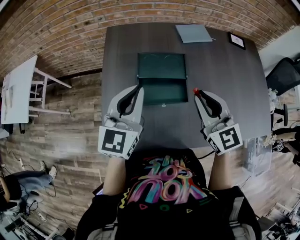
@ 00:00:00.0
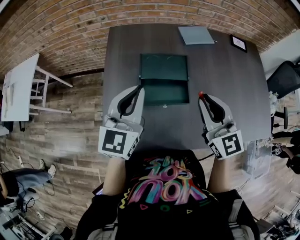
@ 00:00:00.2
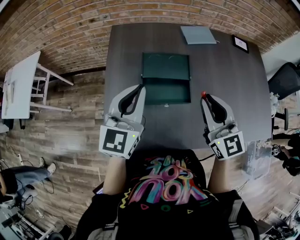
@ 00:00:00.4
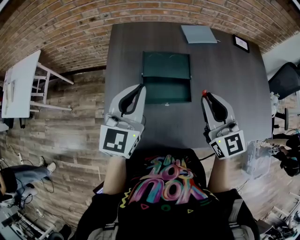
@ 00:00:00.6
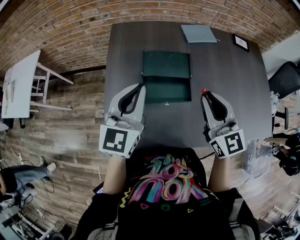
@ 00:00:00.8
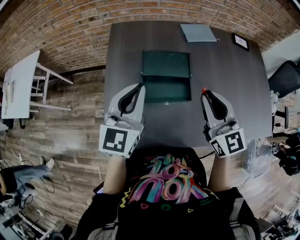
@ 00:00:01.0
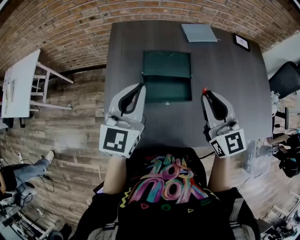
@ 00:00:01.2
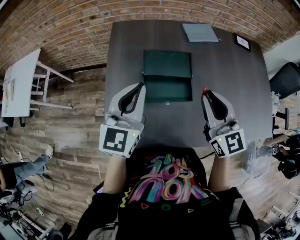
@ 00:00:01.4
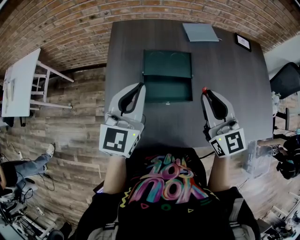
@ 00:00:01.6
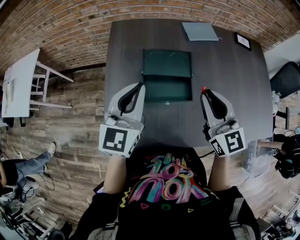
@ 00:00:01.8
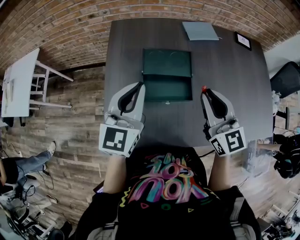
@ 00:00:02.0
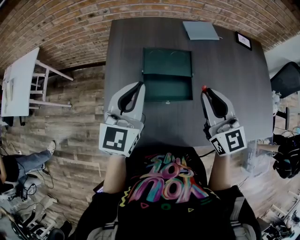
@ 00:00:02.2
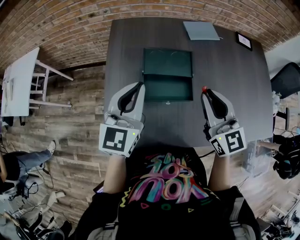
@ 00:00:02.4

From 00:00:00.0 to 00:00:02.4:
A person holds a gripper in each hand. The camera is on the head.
From 00:00:00.0 to 00:00:02.4: There are only small adjustments of the grippers.

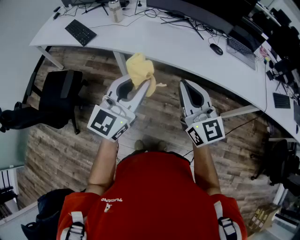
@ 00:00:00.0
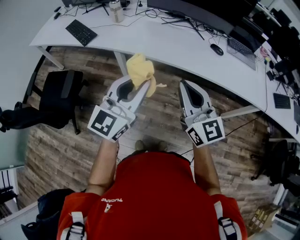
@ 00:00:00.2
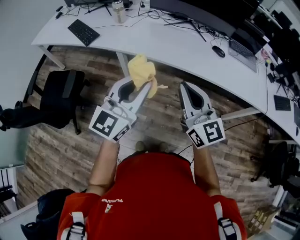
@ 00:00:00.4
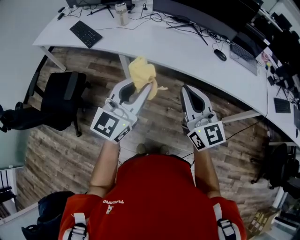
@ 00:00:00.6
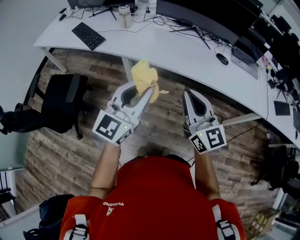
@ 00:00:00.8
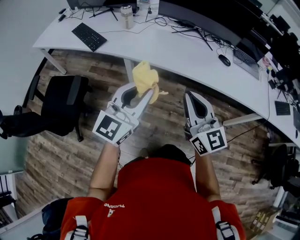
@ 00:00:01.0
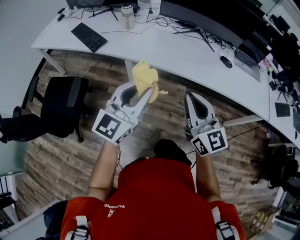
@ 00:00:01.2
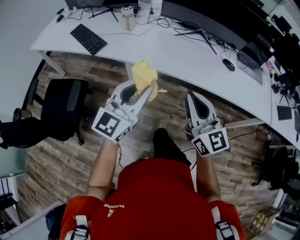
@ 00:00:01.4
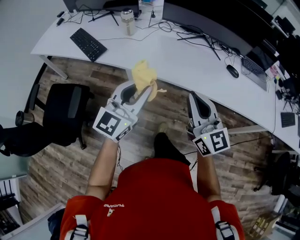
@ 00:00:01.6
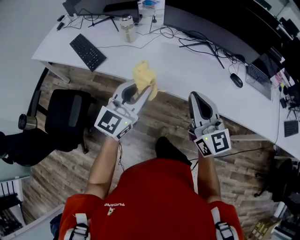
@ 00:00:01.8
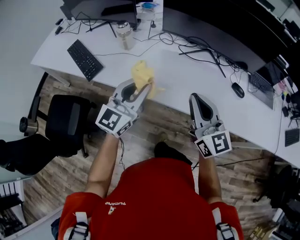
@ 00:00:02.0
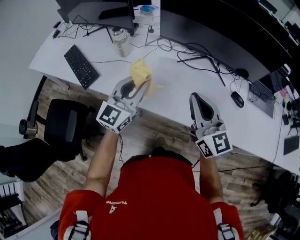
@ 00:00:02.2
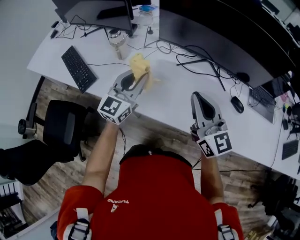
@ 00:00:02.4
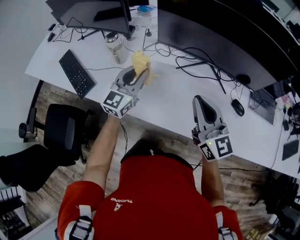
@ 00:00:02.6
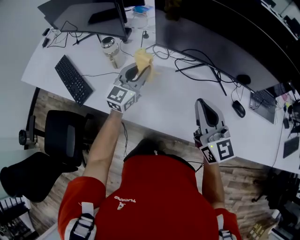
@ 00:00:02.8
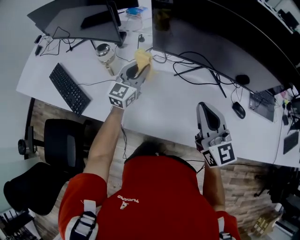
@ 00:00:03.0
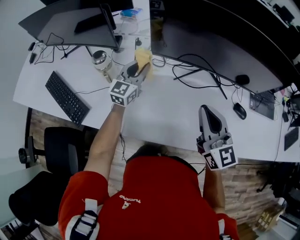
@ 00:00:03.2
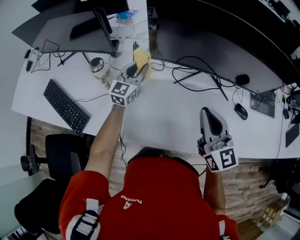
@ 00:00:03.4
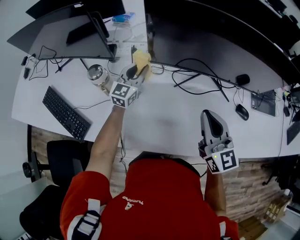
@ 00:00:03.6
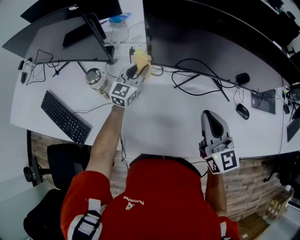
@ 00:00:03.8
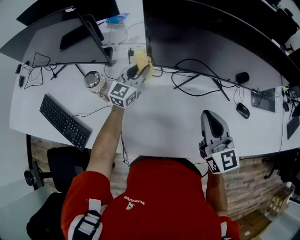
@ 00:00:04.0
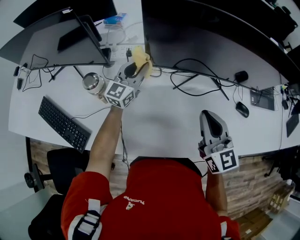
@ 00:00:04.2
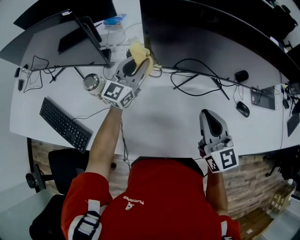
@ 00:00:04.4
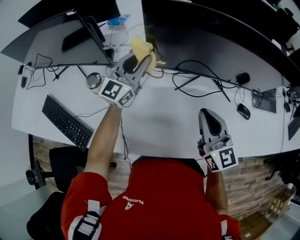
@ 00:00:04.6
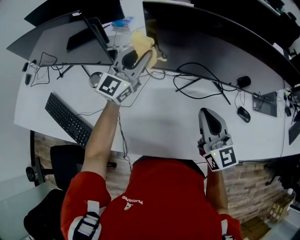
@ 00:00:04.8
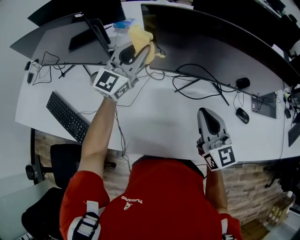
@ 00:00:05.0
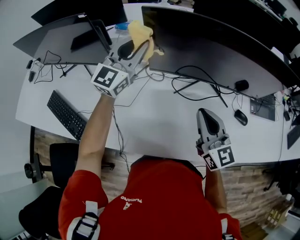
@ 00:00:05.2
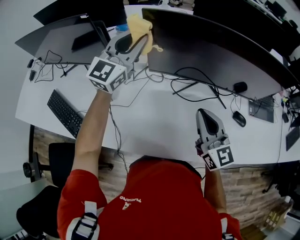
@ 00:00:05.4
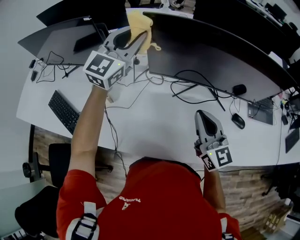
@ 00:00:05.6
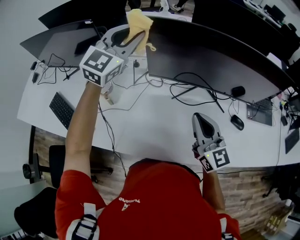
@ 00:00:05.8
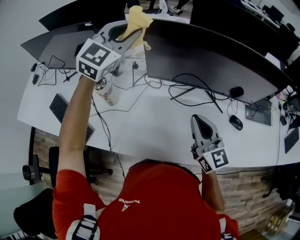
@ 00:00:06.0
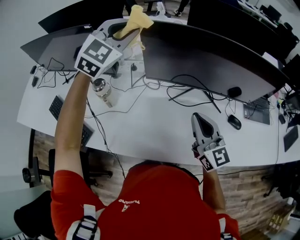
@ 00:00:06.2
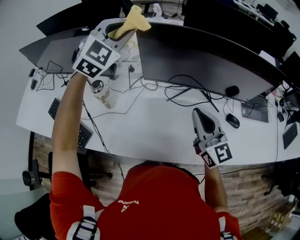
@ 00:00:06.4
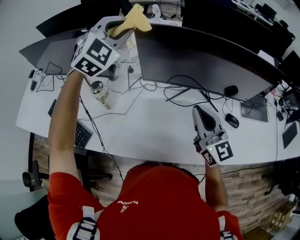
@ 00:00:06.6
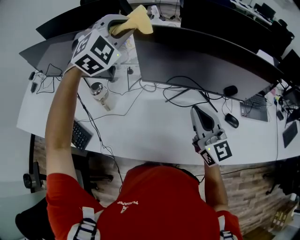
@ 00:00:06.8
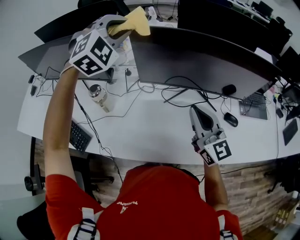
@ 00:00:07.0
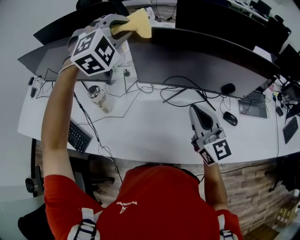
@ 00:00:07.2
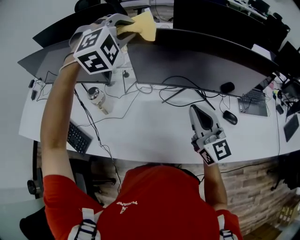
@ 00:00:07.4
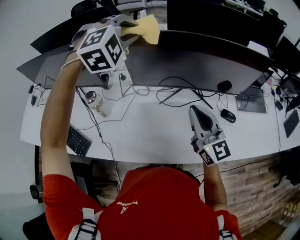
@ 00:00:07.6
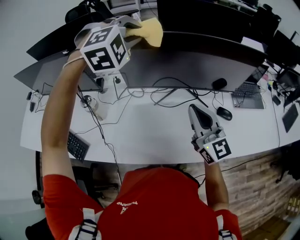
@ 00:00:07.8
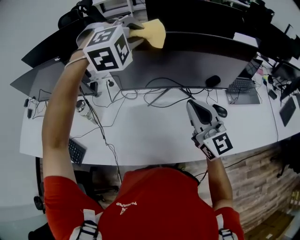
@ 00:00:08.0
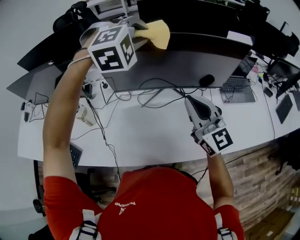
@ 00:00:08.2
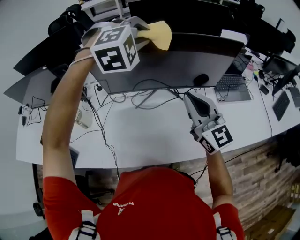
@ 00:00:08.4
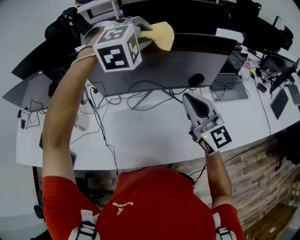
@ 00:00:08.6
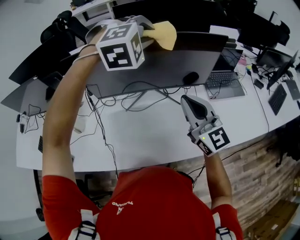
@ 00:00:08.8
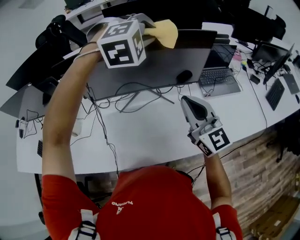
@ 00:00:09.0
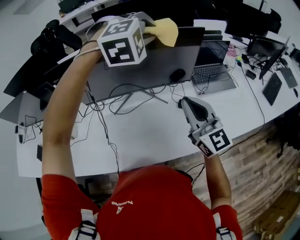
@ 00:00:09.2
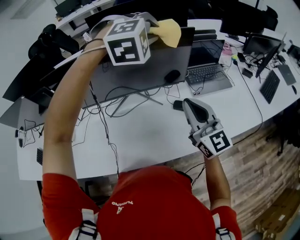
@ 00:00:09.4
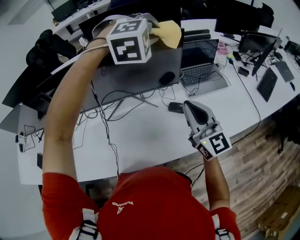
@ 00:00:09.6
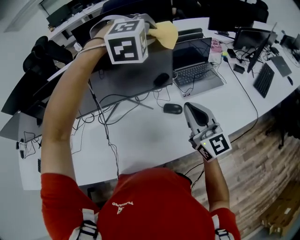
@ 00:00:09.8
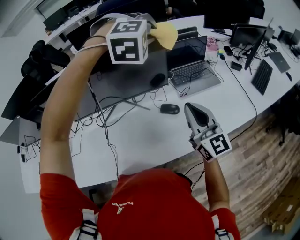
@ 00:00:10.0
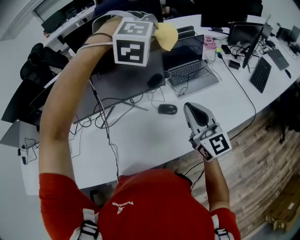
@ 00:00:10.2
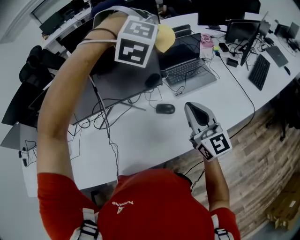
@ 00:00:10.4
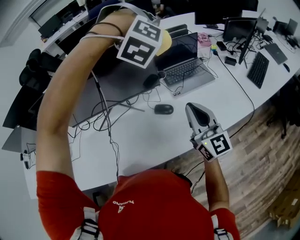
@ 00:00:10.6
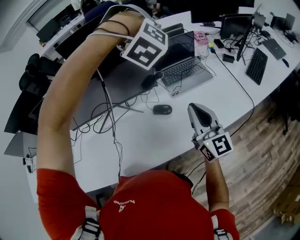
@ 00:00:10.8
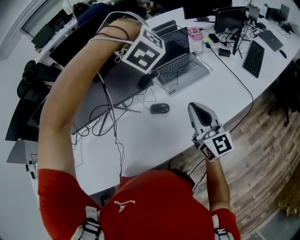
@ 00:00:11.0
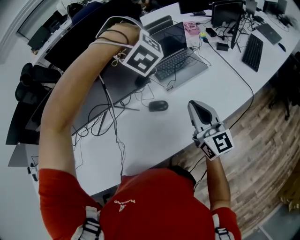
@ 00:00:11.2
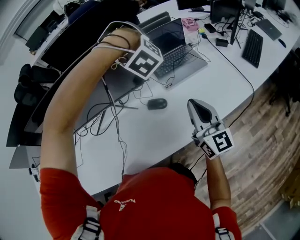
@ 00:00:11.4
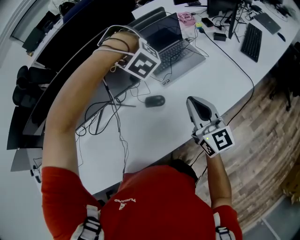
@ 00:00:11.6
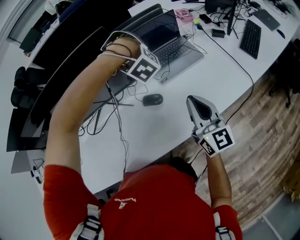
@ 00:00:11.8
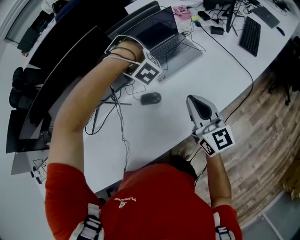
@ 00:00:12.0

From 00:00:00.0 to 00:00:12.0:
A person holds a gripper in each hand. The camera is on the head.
From 00:00:00.0 to 00:00:01.6: The grippers both shift forward and to the left by approximately 15 cm.
From 00:00:01.6 to 00:00:03.0: Both grippers travel together forward, some 40 cm.
From 00:00:03.0 to 00:00:04.4: The left gripper heads forward, covering approximately 10 cm. Meanwhile the right gripper travels forward by some 5 cm.
From 00:00:04.4 to 00:00:06.0: The left gripper is displaced upward by about 25 cm, and changes its angle by some 30 degrees.
From 00:00:06.0 to 00:00:07.6: The left gripper goes about 10 cm to the right, and rotates around the line of its fingers by roughly 40 degrees, clockwise from behind. The right gripper shifts some 5 cm upward.
From 00:00:07.6 to 00:00:09.0: The left gripper travels to the right by approximately 30 cm. The right gripper goes roughly 20 cm to the right.
From 00:00:09.0 to 00:00:10.4: Both grippers move to the right, about 20 cm. The left gripper changes its angle by roughly 30 degrees.
From 00:00:10.4 to 00:00:12.0: The left gripper goes some 25 cm downward, and turns by approximately 50 degrees, while the right gripper goes some 10 cm to the right and downward.

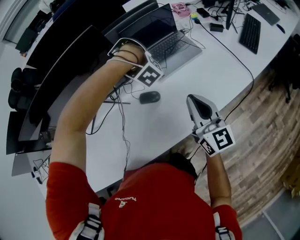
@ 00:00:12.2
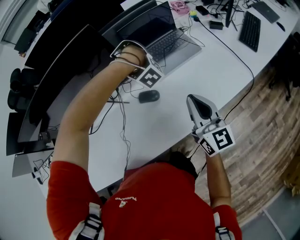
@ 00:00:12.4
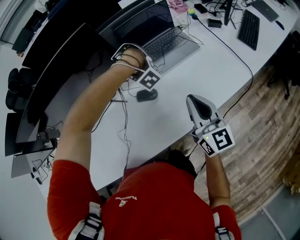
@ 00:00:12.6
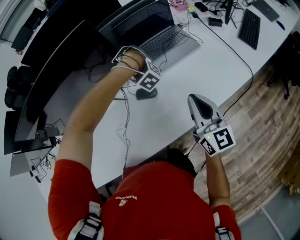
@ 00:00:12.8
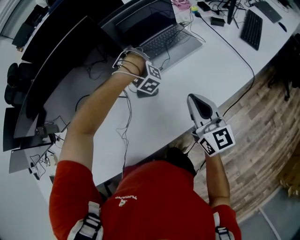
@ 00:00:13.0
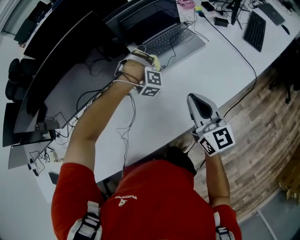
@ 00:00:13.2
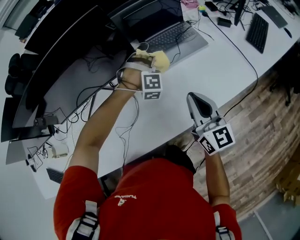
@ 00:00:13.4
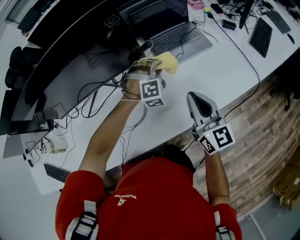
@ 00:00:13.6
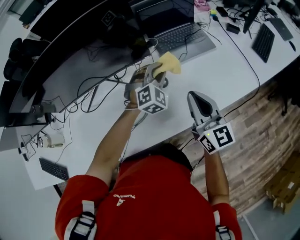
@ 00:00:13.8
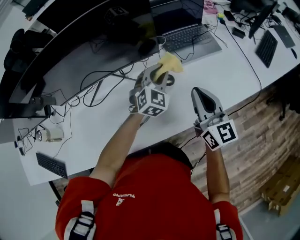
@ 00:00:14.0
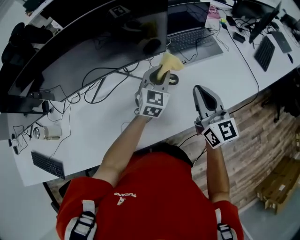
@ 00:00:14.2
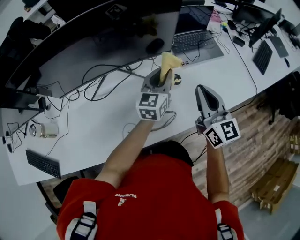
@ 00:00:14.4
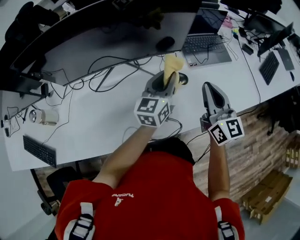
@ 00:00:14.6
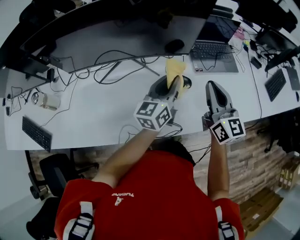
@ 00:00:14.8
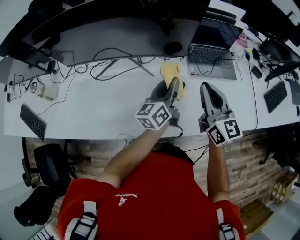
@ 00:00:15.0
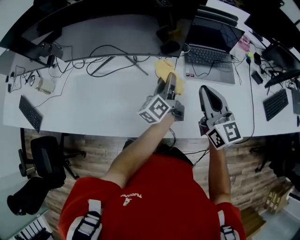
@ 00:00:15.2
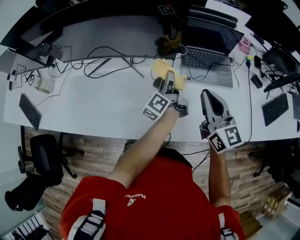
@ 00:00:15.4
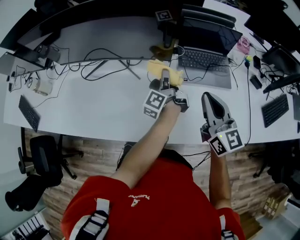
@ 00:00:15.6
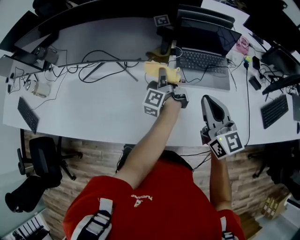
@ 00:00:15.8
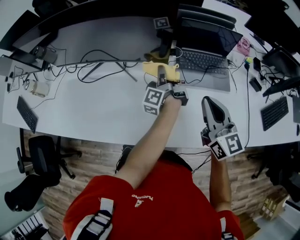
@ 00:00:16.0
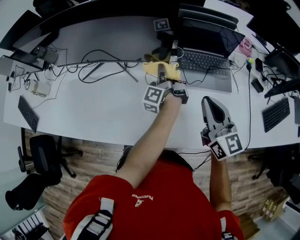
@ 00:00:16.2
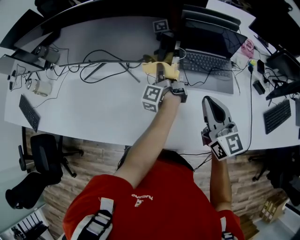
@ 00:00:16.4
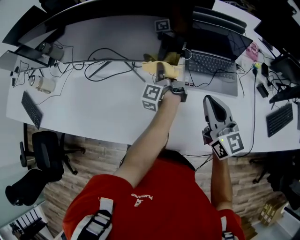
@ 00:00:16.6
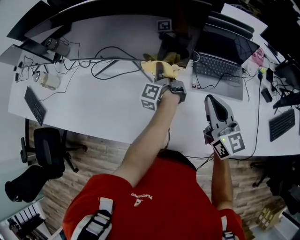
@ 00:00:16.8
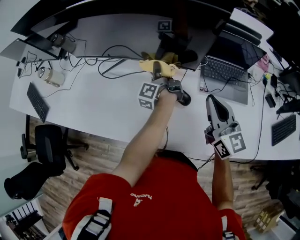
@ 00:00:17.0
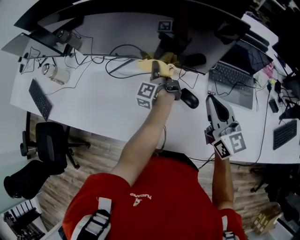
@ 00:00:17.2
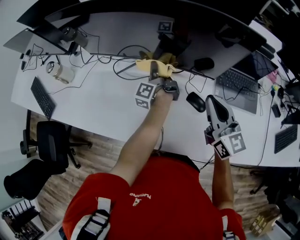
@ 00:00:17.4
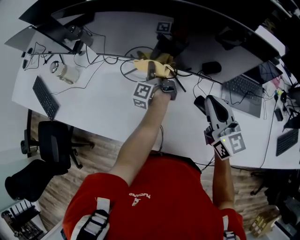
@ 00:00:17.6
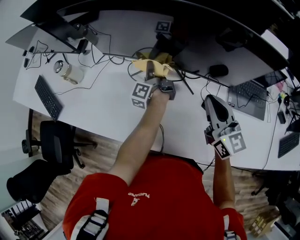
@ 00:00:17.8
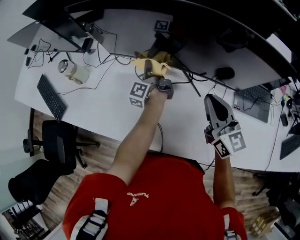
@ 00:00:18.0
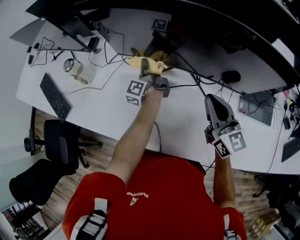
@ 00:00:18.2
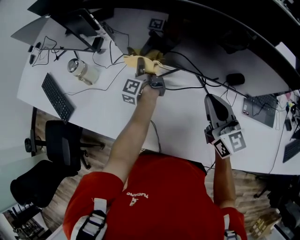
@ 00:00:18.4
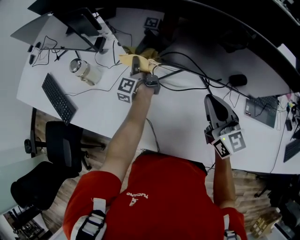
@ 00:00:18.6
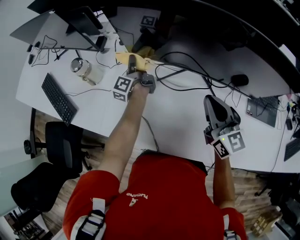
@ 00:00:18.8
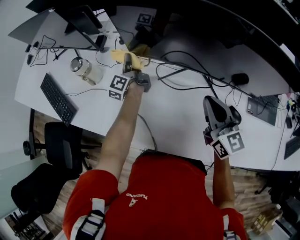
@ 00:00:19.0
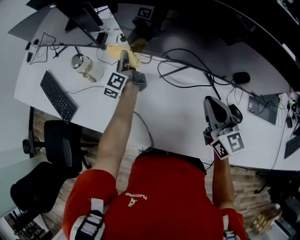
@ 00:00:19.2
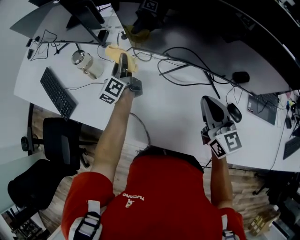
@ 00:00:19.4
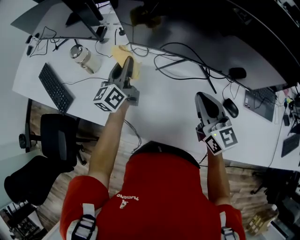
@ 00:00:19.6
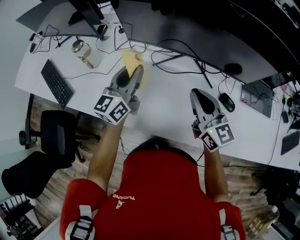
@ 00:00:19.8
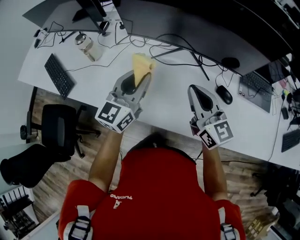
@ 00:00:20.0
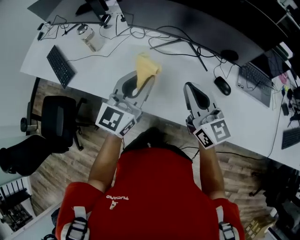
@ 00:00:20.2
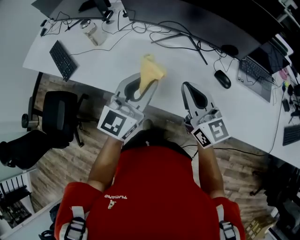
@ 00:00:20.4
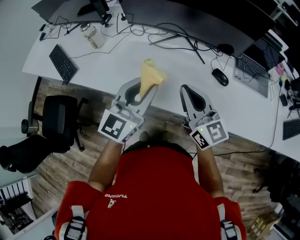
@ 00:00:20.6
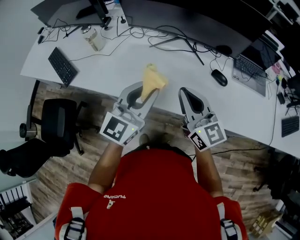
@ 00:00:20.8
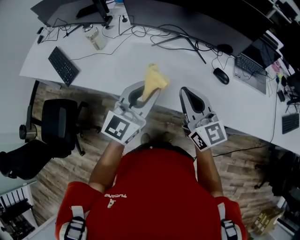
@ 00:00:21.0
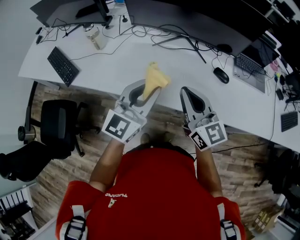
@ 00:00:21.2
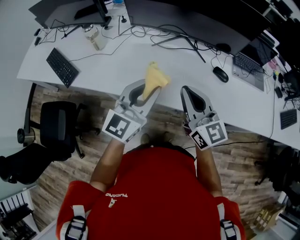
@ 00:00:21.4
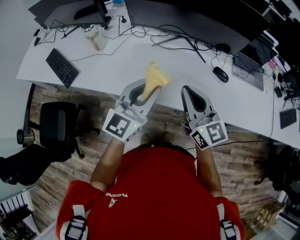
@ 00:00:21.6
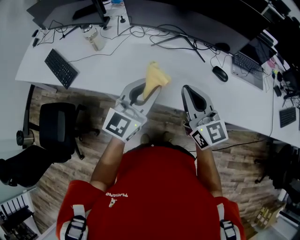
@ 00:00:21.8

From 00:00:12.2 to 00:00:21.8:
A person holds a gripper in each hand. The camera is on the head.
From 00:00:12.2 to 00:00:13.8: The left gripper goes downward and returns, roughly 10 cm each way, and turns by about 100 degrees. The right gripper shifts by some 5 cm.
From 00:00:13.8 to 00:00:15.4: The left gripper goes upward and returns, roughly 10 cm each way, and rotates around the line of its fingers by some 120 degrees, counterclockwise from behind. Meanwhile the right gripper shifts by approximately 10 cm, and rotates some 20 degrees.
From 00:00:15.4 to 00:00:17.0: The left gripper is displaced forward and to the left by some 15 cm, and swivels approximately 30 degrees. Meanwhile the right gripper shifts some 5 cm forward.
From 00:00:17.0 to 00:00:18.6: The grippers both shift to the left and forward by roughly 35 cm.
From 00:00:18.6 to 00:00:20.2: The right gripper shifts roughly 15 cm backward, while the left gripper travels backward and upward by approximately 40 cm, and rolls clockwise, seen from behind, by some 70 degrees.
From 00:00:20.2 to 00:00:21.8: The right gripper heads backward and to the left, covering some 10 cm; the left gripper is displaced backward by roughly 10 cm.
